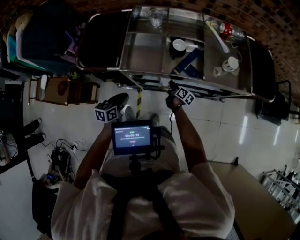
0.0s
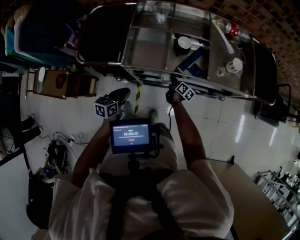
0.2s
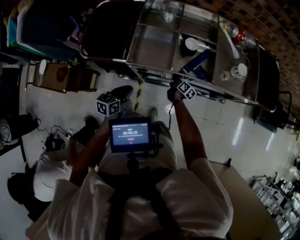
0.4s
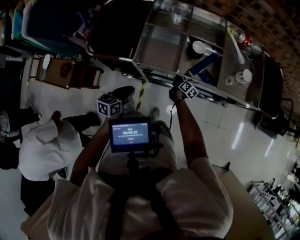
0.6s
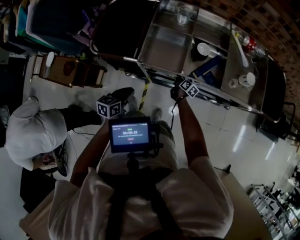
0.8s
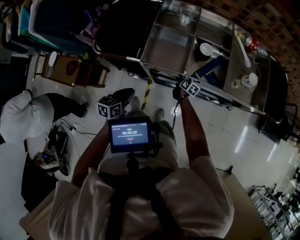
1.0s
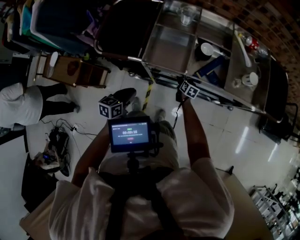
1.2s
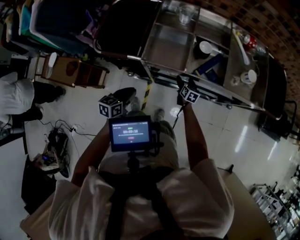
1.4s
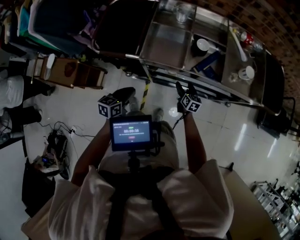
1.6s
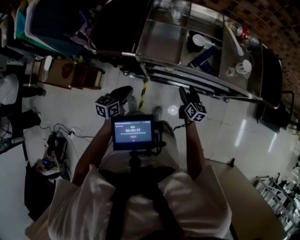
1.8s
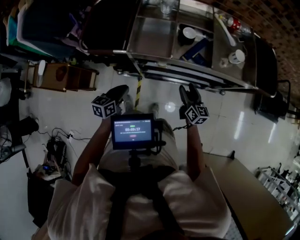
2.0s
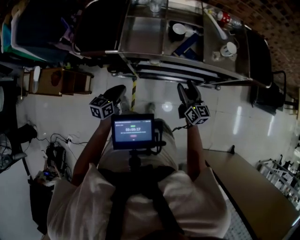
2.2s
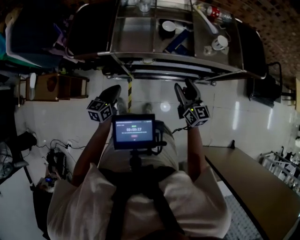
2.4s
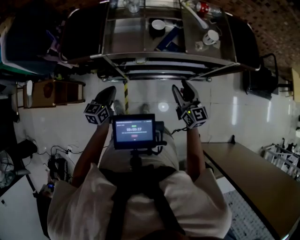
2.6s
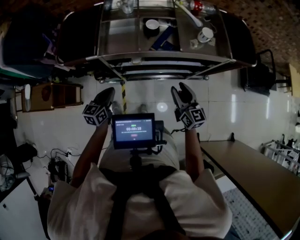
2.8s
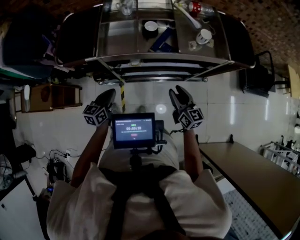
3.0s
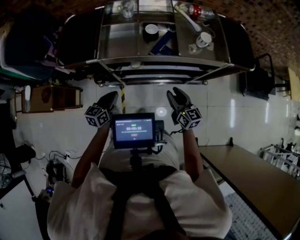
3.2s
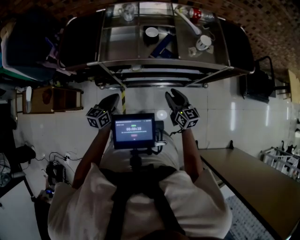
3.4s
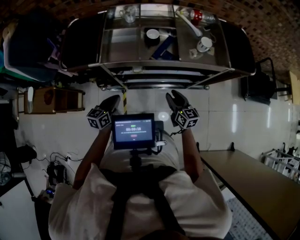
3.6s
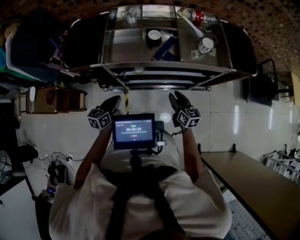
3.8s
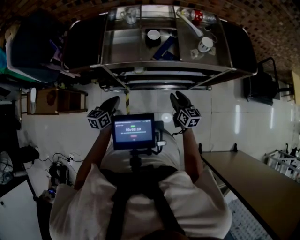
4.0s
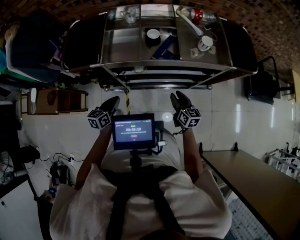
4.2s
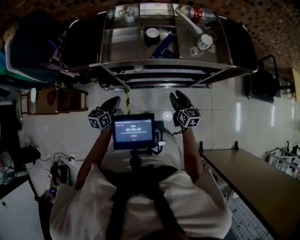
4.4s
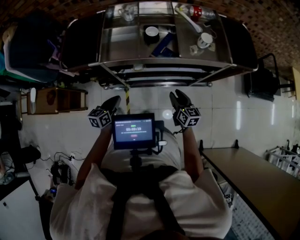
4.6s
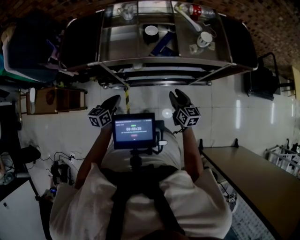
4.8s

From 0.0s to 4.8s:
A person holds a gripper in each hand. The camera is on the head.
From 0.0s to 1.6s: The left gripper shifts by roughly 5 cm. The right gripper changes its angle by approximately 40 degrees, and opens.
From 1.6s to 3.2s: The left gripper moves to the right, roughly 10 cm, while the right gripper shifts roughly 25 cm upward, backward and to the right, and closes its fingers.
From 3.2s to 4.8s: The right gripper is displaced downward by about 5 cm.

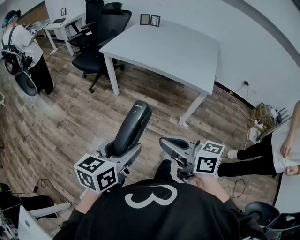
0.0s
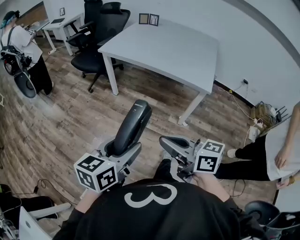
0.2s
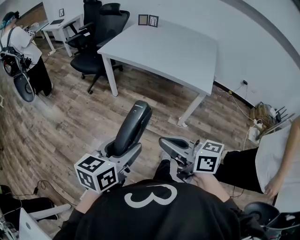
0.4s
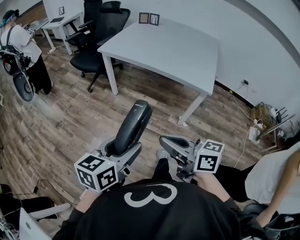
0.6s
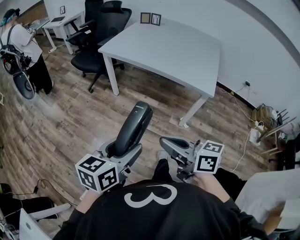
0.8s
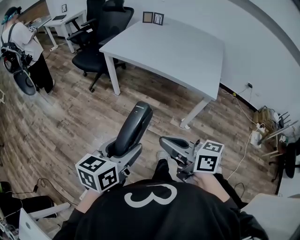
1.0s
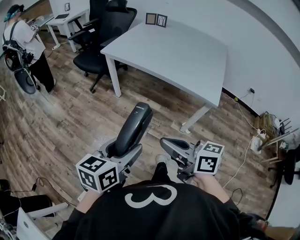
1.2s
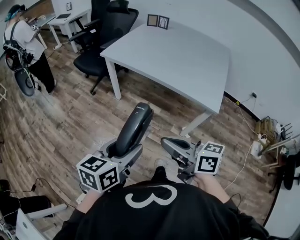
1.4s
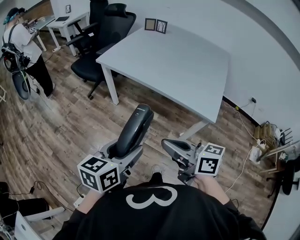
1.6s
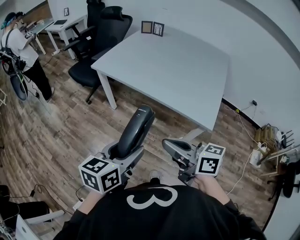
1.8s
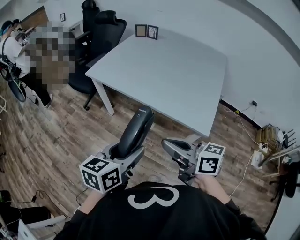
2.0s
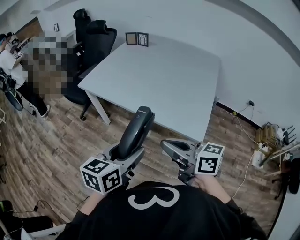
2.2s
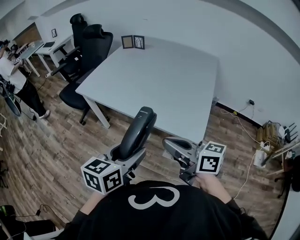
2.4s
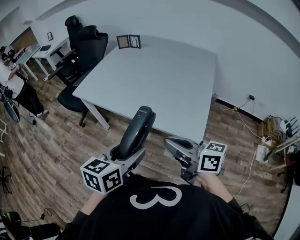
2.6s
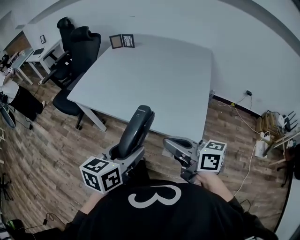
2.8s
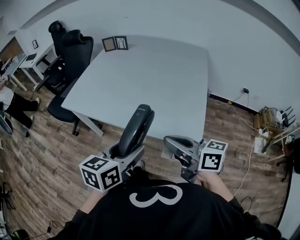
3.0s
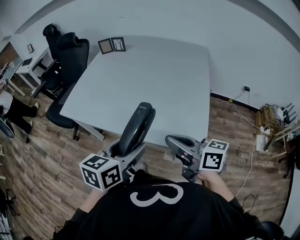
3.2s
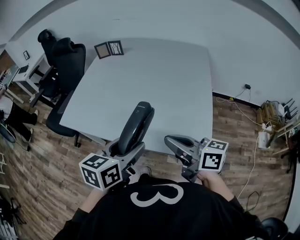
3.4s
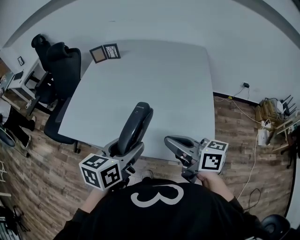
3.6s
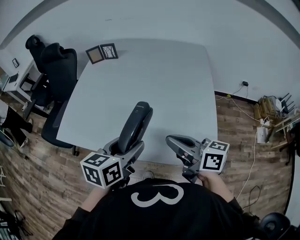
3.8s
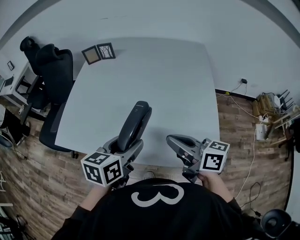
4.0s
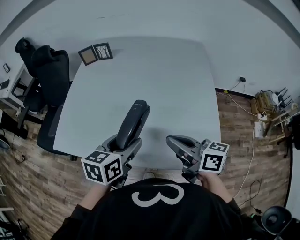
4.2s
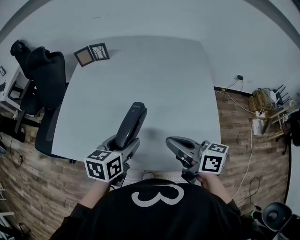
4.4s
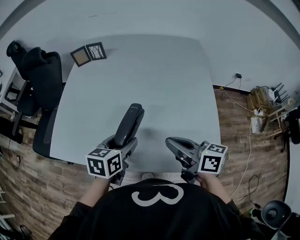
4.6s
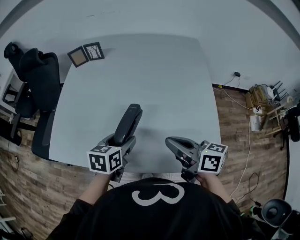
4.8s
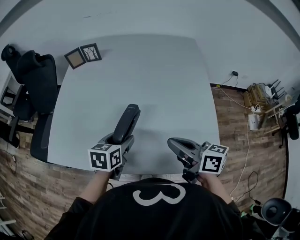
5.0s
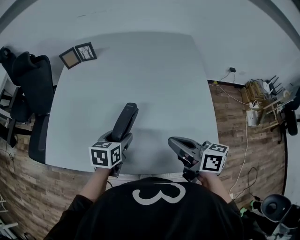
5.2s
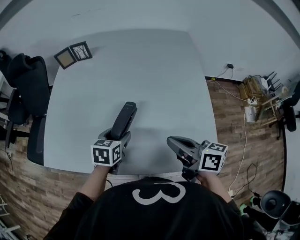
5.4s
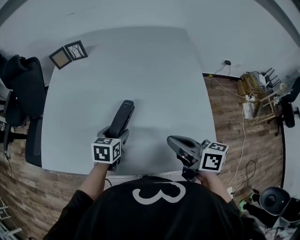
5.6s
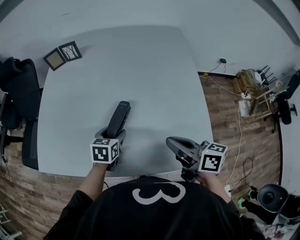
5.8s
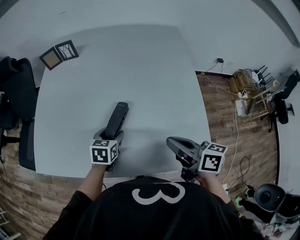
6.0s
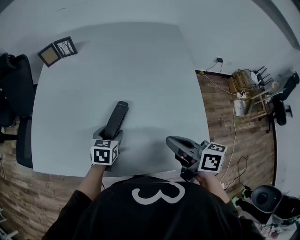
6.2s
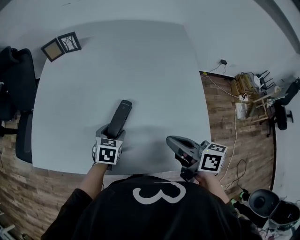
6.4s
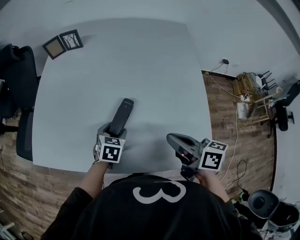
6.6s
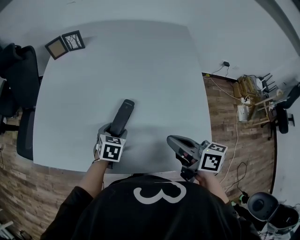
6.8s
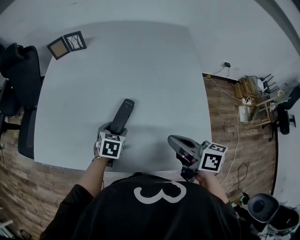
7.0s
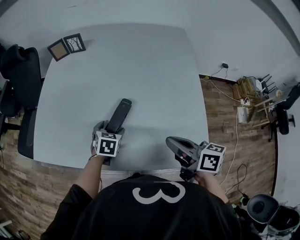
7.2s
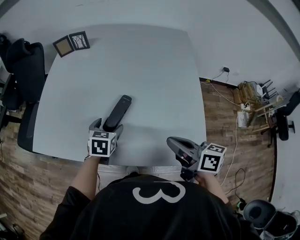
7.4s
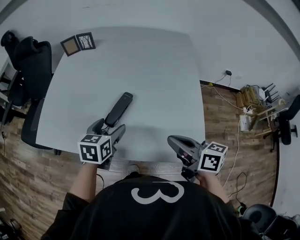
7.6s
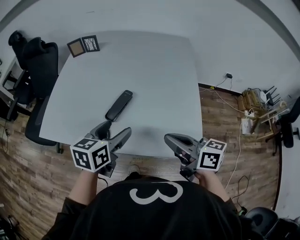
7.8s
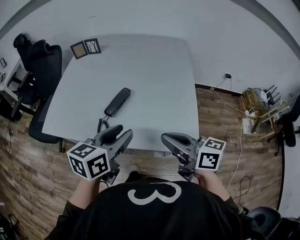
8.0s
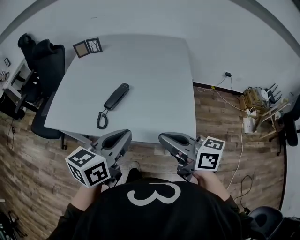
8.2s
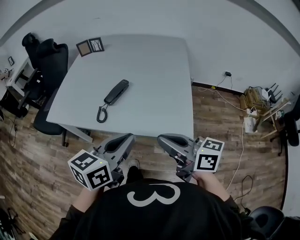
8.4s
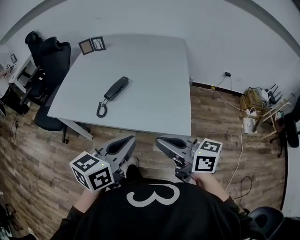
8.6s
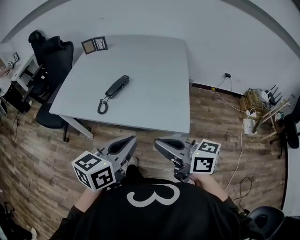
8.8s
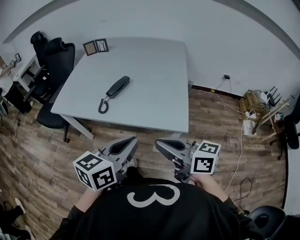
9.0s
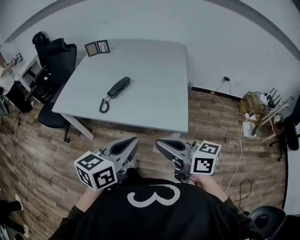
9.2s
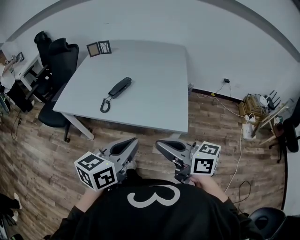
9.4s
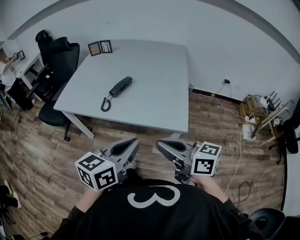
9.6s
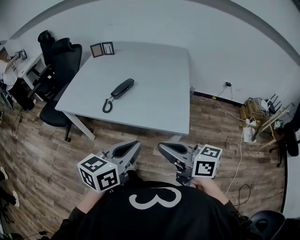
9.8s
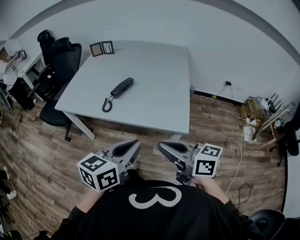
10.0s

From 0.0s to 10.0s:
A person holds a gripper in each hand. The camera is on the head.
From 0.0s to 1.4s: The grippers both shift forward by roughly 10 cm.
From 1.4s to 2.8s: Both grippers move to the right and forward, roughly 30 cm.
From 2.8s to 4.2s: The two grippers go approximately 25 cm forward.
From 4.2s to 5.8s: The left gripper shifts approximately 20 cm downward and forward; the right gripper shifts approximately 5 cm downward.
From 5.8s to 7.2s: The grippers move only a little.
From 7.2s to 8.6s: The right gripper is displaced backward by about 25 cm, and turns by roughly 30 degrees, while the left gripper moves backward and upward, about 40 cm, tilts its fingers about 40 degrees upward, and closes.
From 8.6s to 10.0s: The grippers both shift backward by some 5 cm.

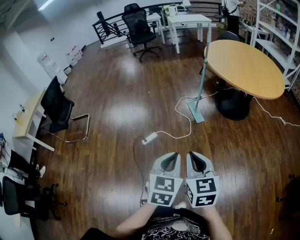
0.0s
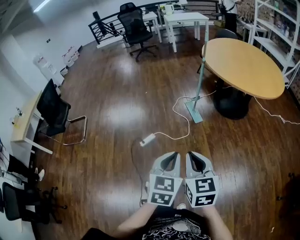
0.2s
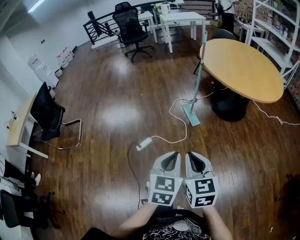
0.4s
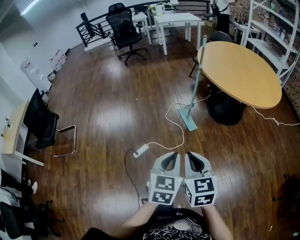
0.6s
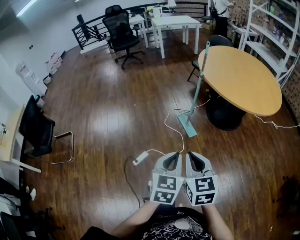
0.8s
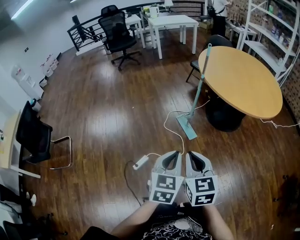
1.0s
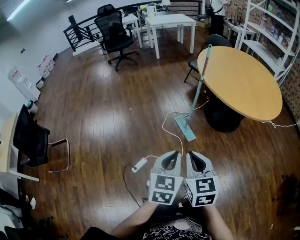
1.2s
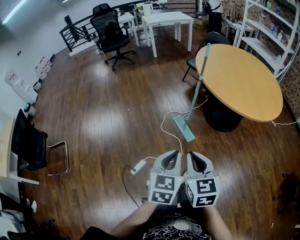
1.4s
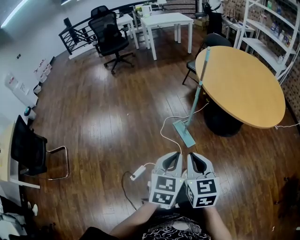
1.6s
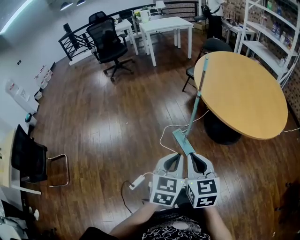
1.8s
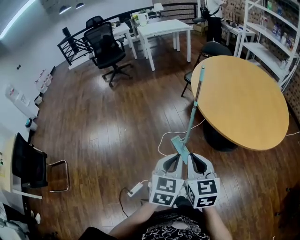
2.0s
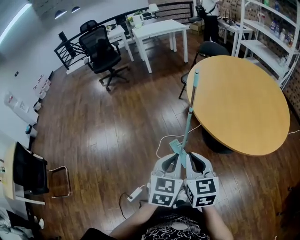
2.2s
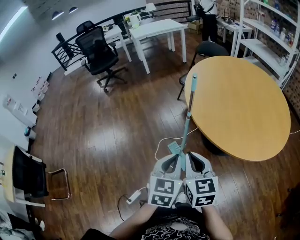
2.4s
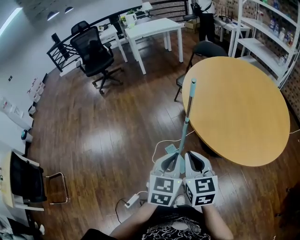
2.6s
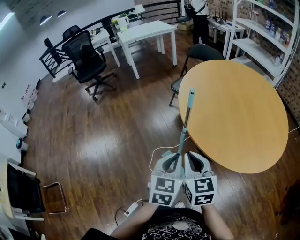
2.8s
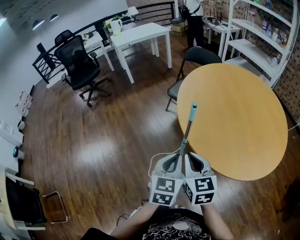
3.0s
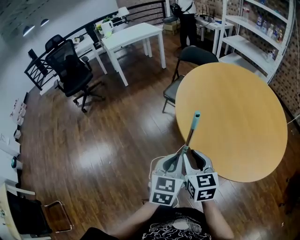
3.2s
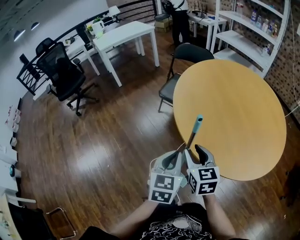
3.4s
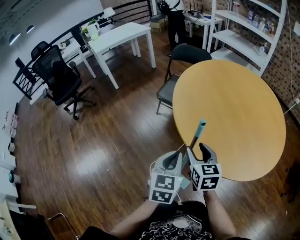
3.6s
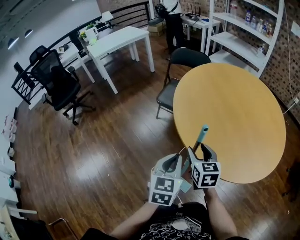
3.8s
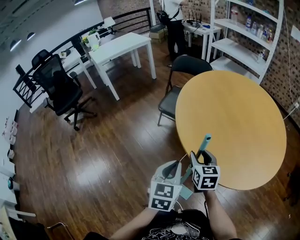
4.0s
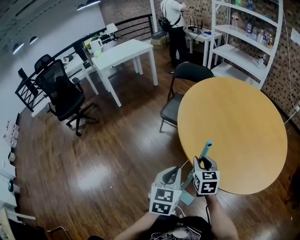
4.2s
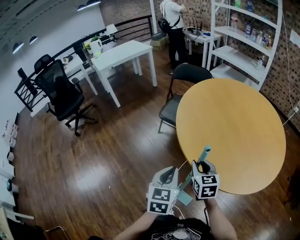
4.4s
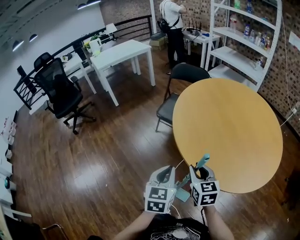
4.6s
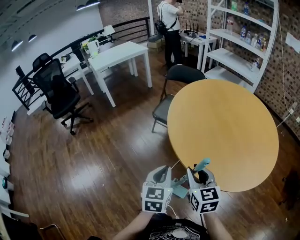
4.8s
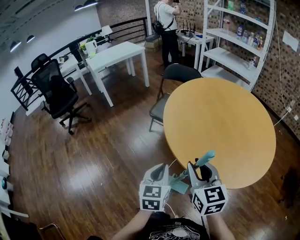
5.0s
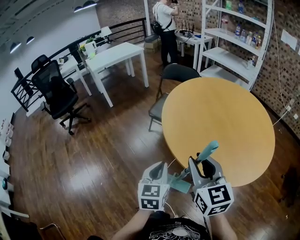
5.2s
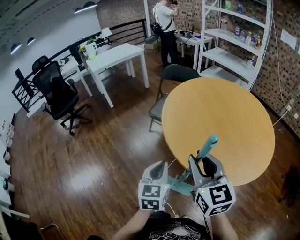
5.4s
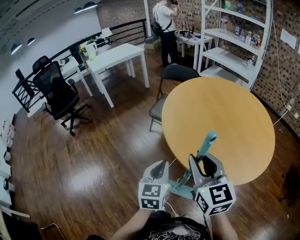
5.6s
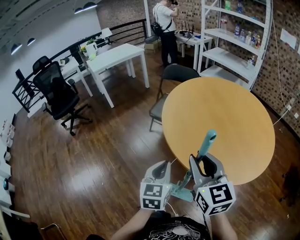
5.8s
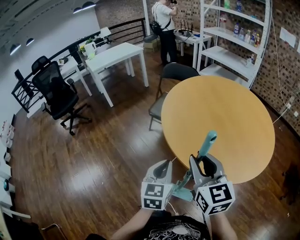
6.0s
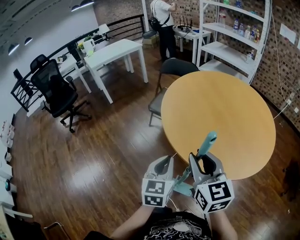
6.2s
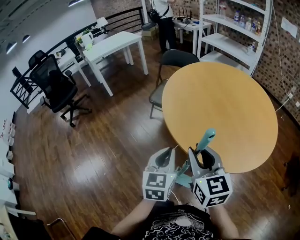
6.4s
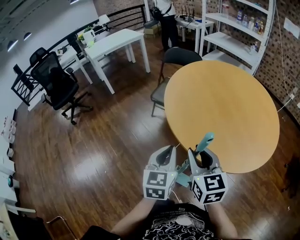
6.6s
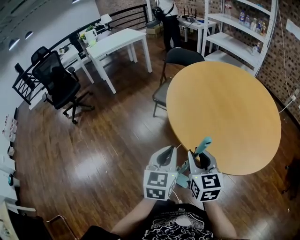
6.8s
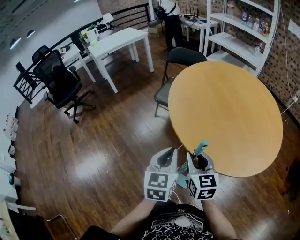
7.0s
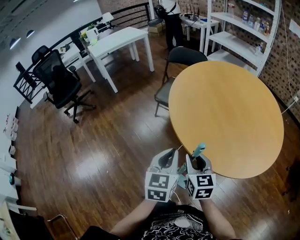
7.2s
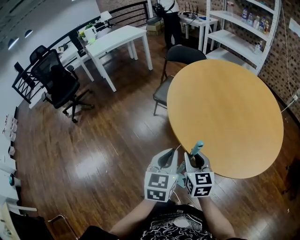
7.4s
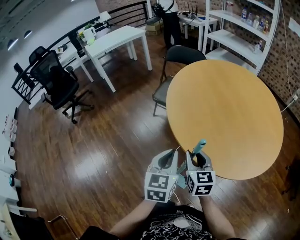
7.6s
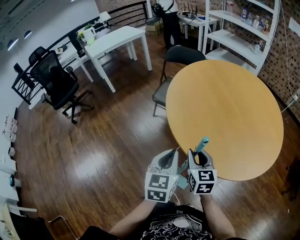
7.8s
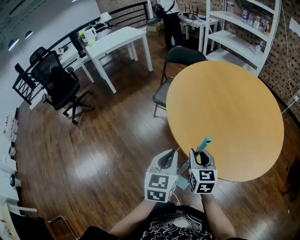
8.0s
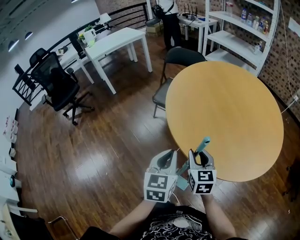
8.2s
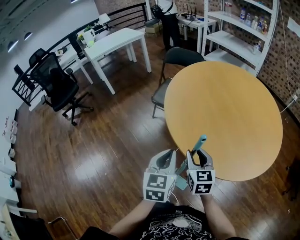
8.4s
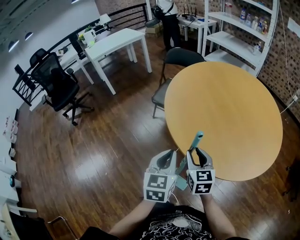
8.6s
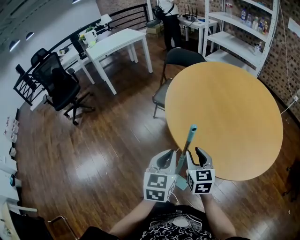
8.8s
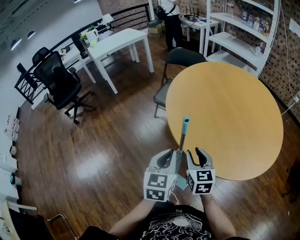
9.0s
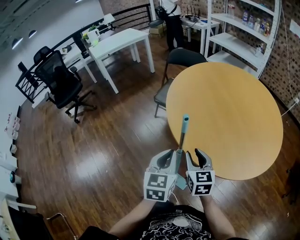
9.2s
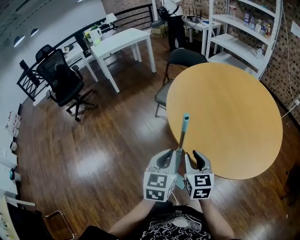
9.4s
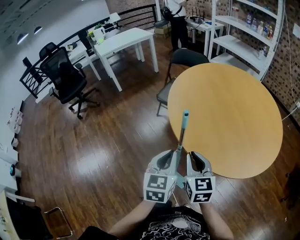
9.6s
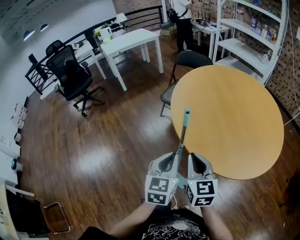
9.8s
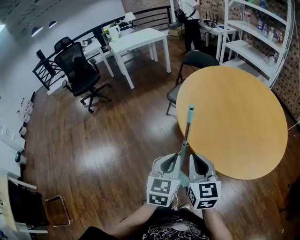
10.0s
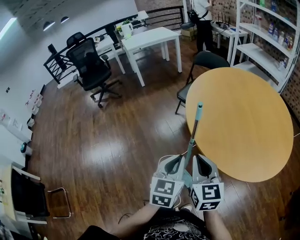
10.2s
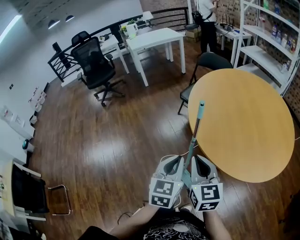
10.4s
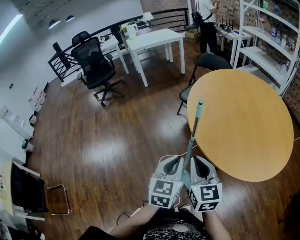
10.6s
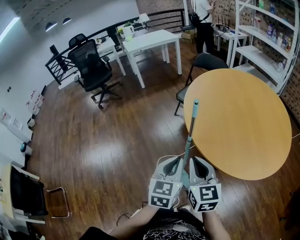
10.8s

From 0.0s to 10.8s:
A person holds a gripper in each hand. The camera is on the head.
From 0.0s to 1.6s: Both grippers are carried forward, some 40 cm.
From 1.6s to 3.0s: Both grippers are carried forward, approximately 50 cm.
From 3.0s to 4.6s: The right gripper goes some 10 cm forward and downward, and opens up; the left gripper heads forward and to the left, covering approximately 15 cm.
From 4.6s to 6.2s: The right gripper travels upward and backward by approximately 20 cm. The left gripper goes about 5 cm to the right.
From 6.2s to 7.8s: The right gripper moves downward and forward, some 20 cm.
From 7.8s to 9.2s: There are only small adjustments of the grippers.
From 9.2s to 10.8s: The right gripper goes some 15 cm backward and upward, and closes. Meanwhile the left gripper is displaced backward by approximately 15 cm.
